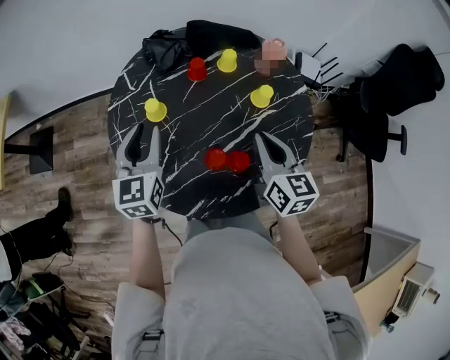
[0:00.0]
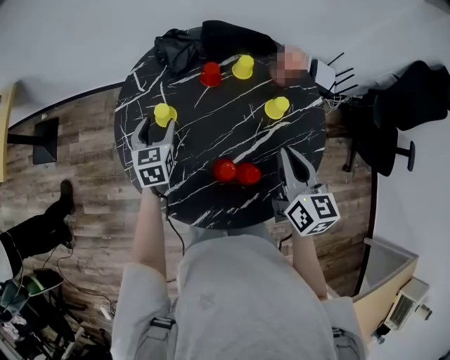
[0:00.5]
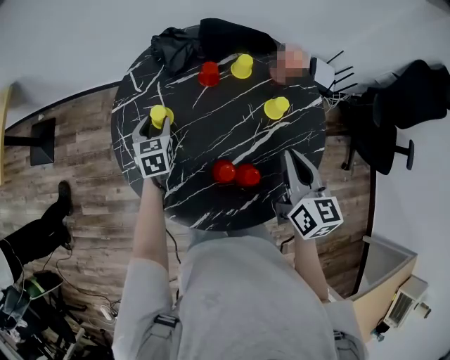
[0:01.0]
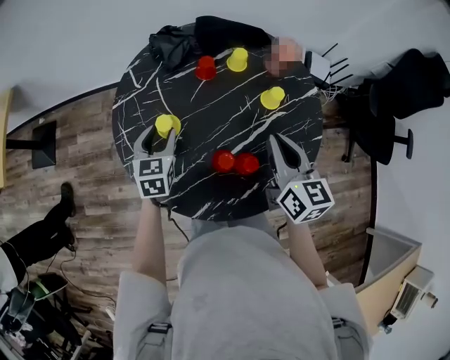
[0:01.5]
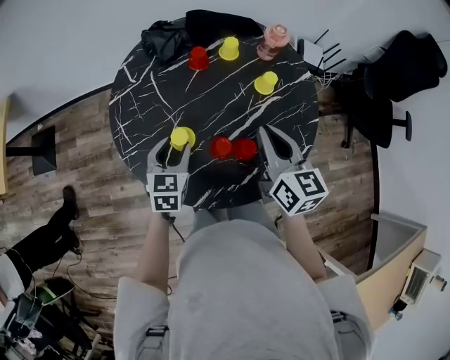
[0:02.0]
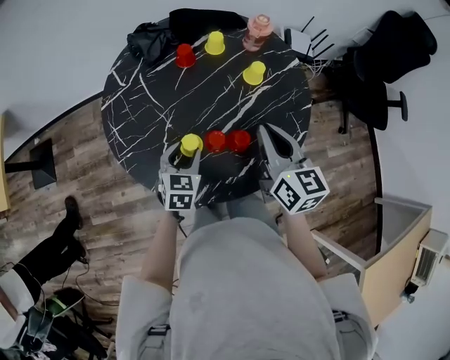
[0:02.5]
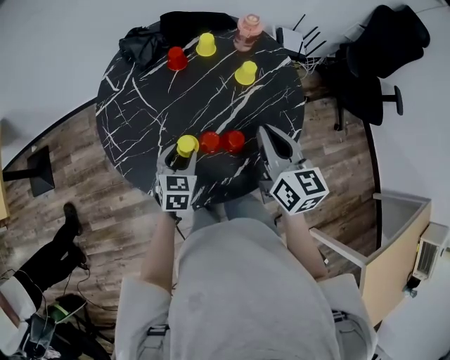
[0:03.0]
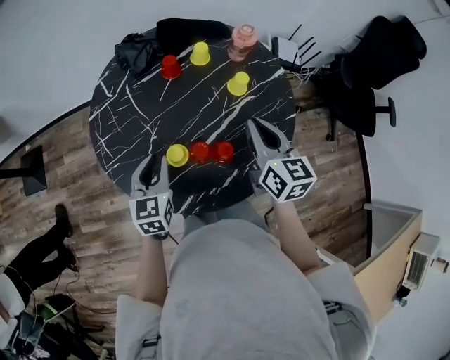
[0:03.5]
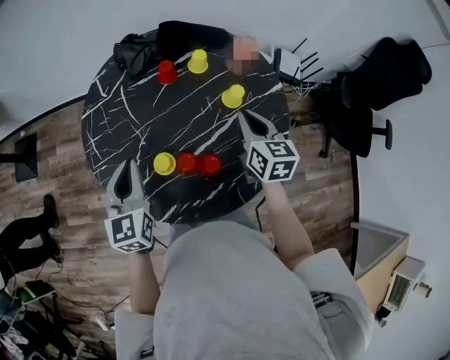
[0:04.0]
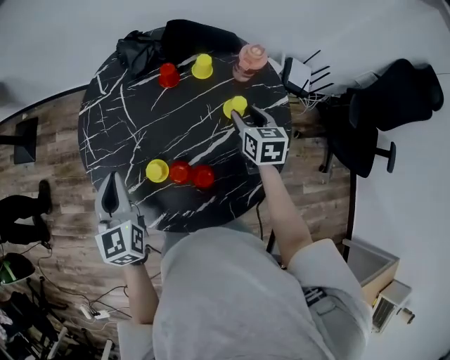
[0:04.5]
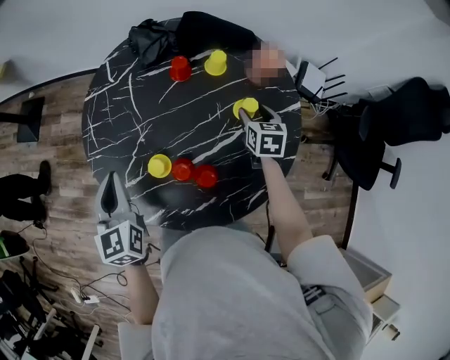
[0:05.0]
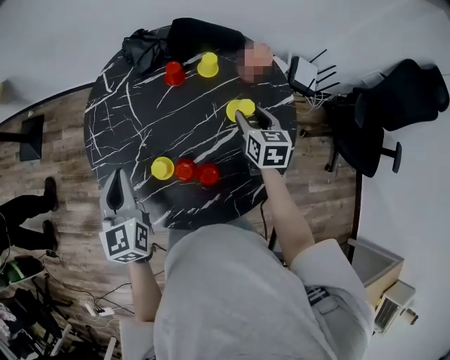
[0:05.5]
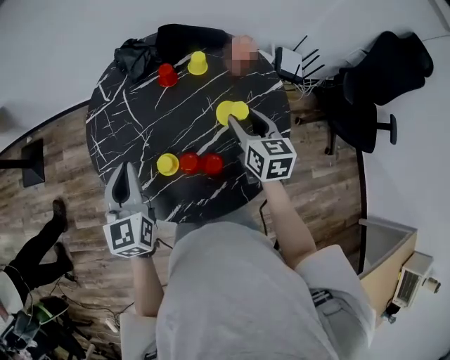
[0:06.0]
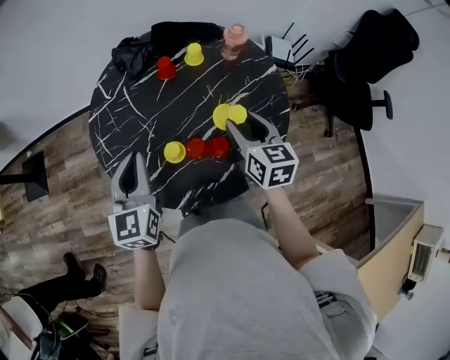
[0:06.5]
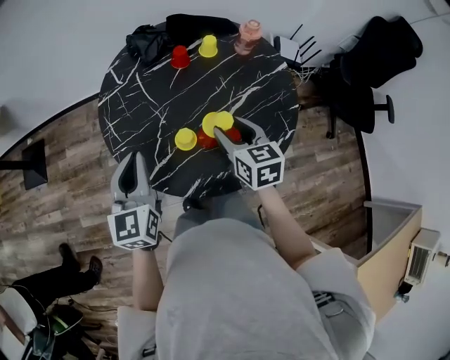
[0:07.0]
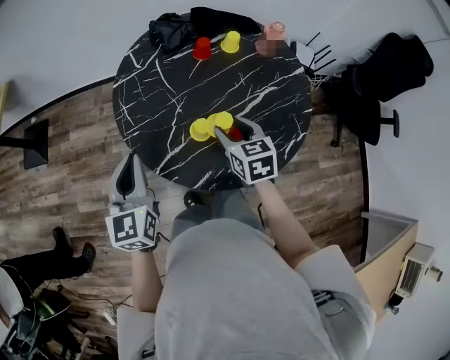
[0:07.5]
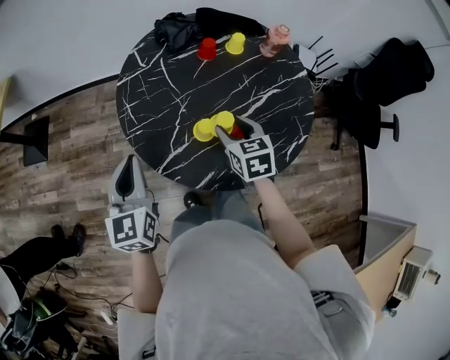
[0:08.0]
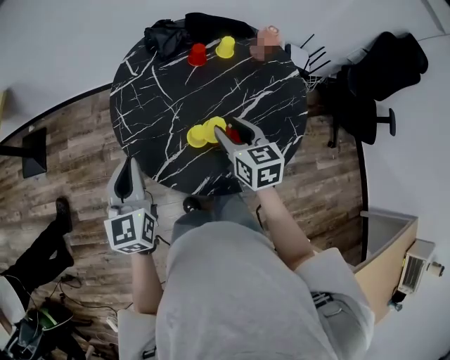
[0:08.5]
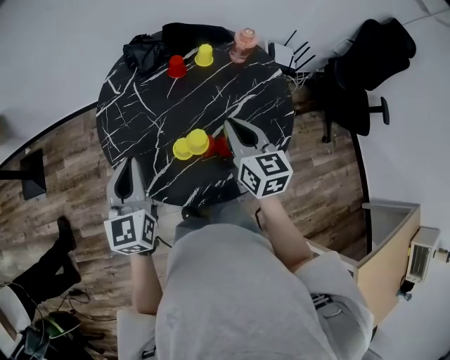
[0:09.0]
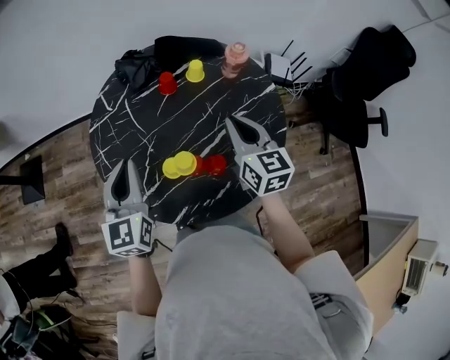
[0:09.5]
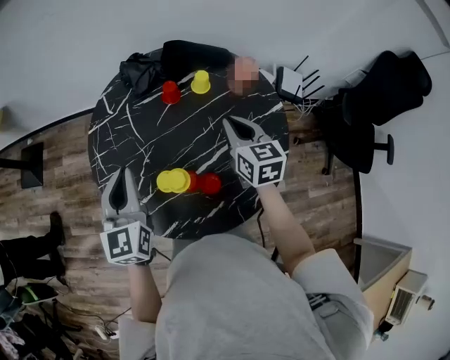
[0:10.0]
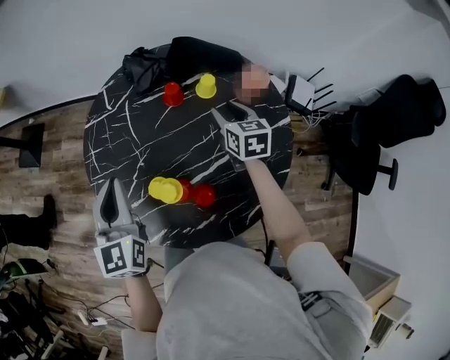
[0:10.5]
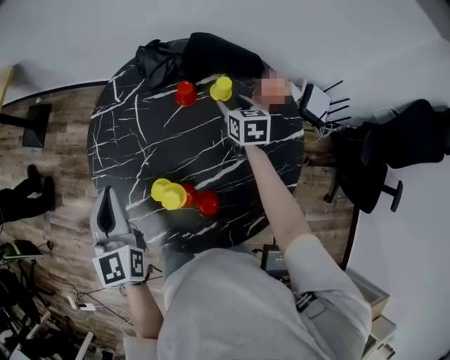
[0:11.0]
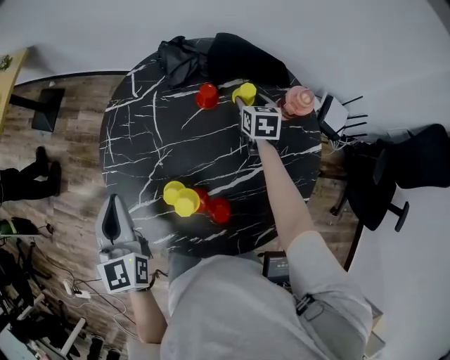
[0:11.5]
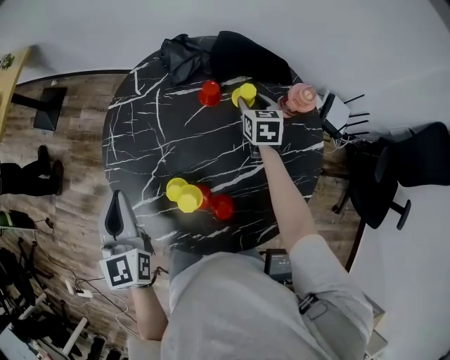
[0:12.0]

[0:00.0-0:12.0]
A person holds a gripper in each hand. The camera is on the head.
0.0 to 2.0 s: The left gripper heads downward and backward, covering some 15 cm, rotates roughly 20 degrees, and opens.
2.0 to 4.0 s: The left gripper travels upward by about 10 cm, rotates about 20 degrees, and closes up, while the right gripper travels forward and to the right by about 10 cm.
4.0 to 6.0 s: The right gripper moves approximately 15 cm downward and comes back, and opens its fingers.
6.0 to 8.0 s: The two grippers go some 20 cm to the left and backward.
8.0 to 10.0 s: The left gripper goes about 15 cm to the right and forward, while the right gripper travels to the right, forward and upward by about 20 cm, and closes up.
10.0 to 12.0 s: The left gripper is displaced to the left by some 5 cm, and turns by roughly 20 degrees. Meanwhile the right gripper is displaced forward and downward by some 25 cm, and opens up.

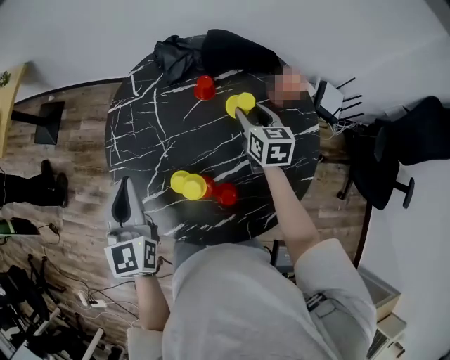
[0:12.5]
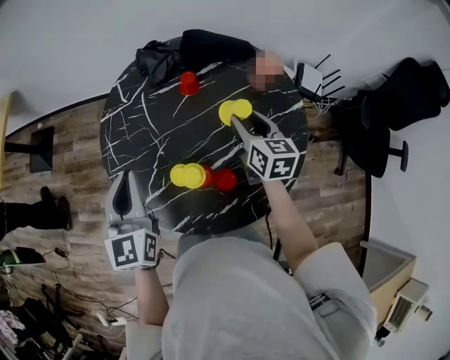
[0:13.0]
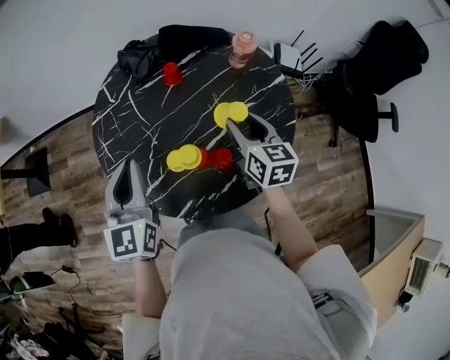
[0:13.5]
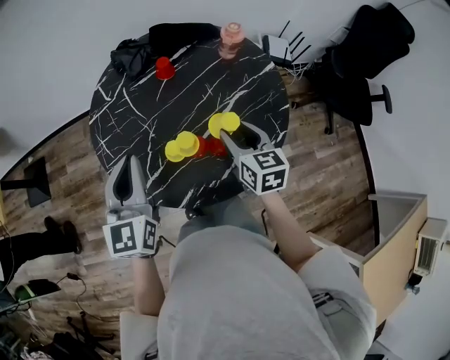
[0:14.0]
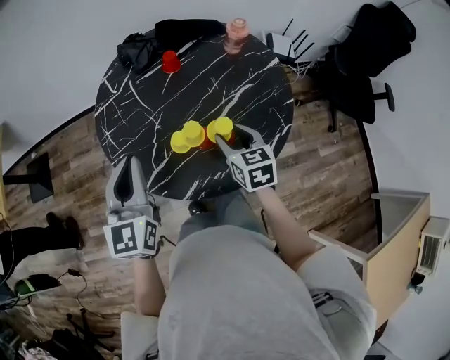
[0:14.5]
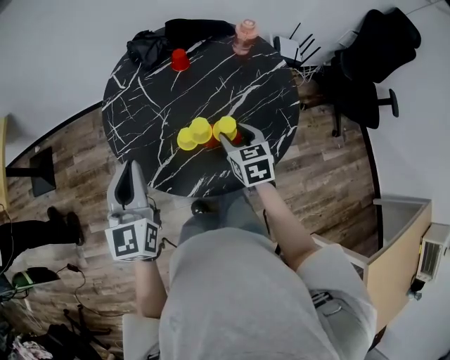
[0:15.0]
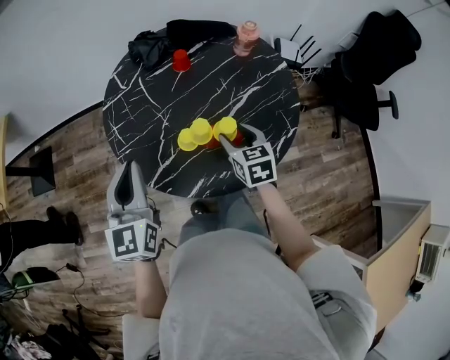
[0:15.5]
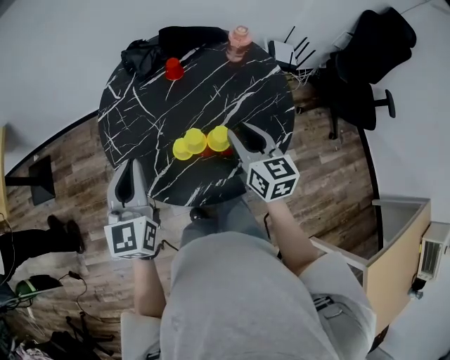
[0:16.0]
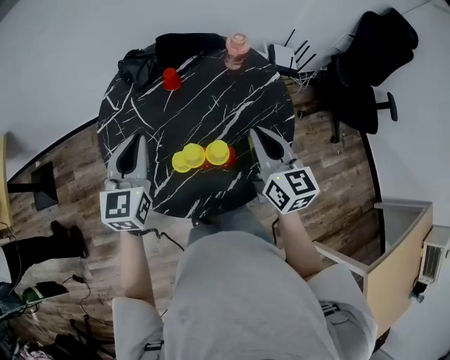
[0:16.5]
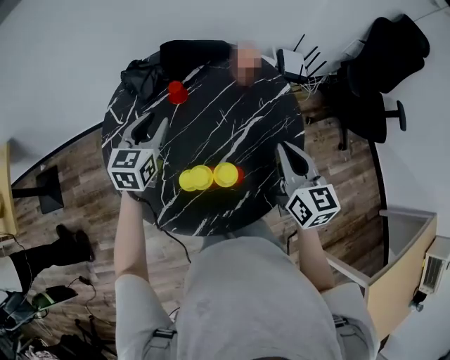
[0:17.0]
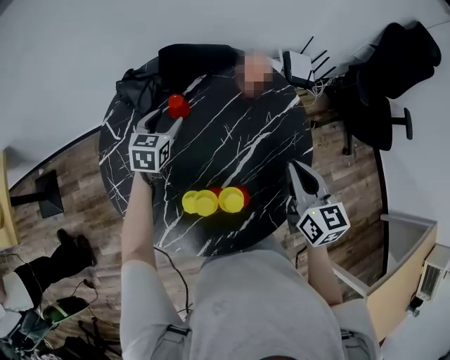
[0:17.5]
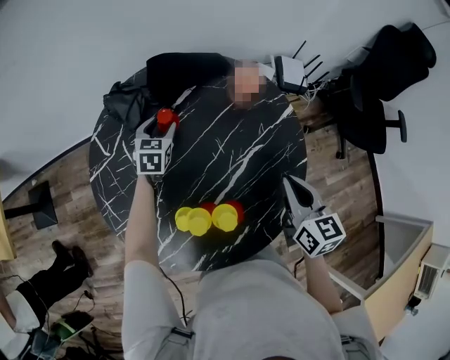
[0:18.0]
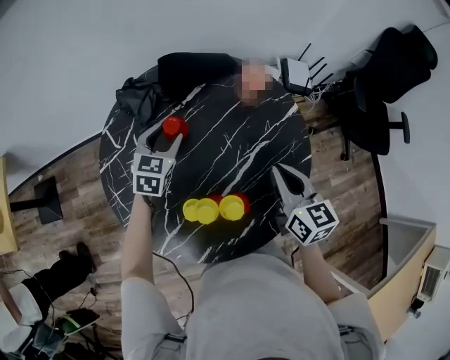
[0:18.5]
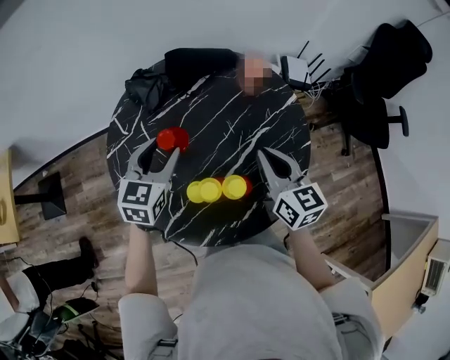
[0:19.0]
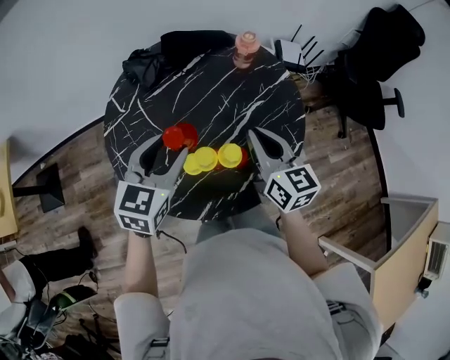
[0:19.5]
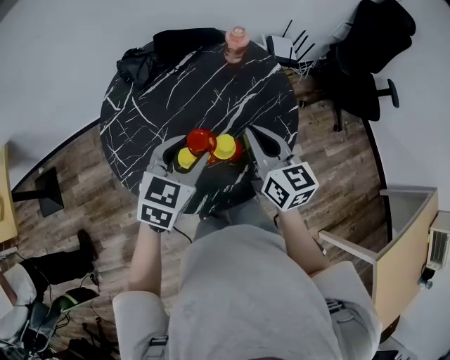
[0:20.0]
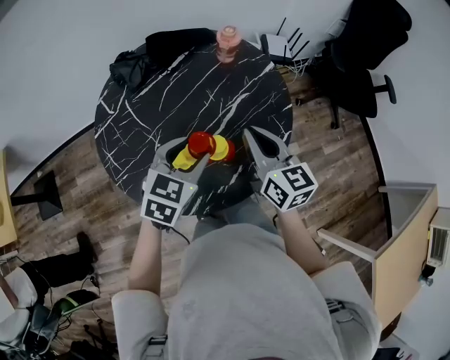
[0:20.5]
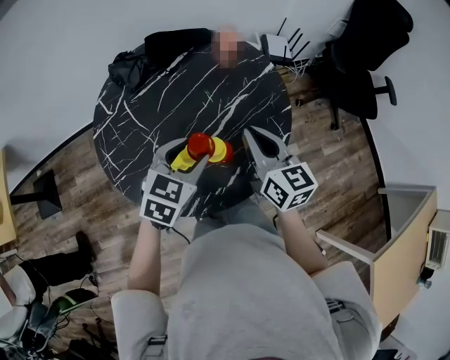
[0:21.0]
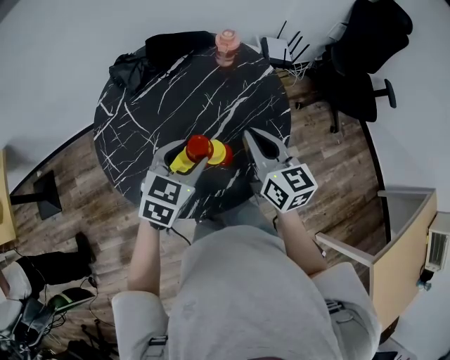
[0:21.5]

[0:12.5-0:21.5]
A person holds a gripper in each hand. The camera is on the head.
12.5 to 14.5 s: The left gripper travels backward by approximately 5 cm, and changes its angle by roughly 30 degrees, while the right gripper heads backward, covering roughly 25 cm.
14.5 to 17.0 s: The left gripper moves forward, some 25 cm, swivels roughly 20 degrees, and opens up, while the right gripper moves to the right and upward, approximately 15 cm, turns by roughly 20 degrees, and closes its fingers.
17.0 to 19.5 s: The right gripper travels to the left by about 10 cm; the left gripper goes about 15 cm backward.
19.5 to 21.5 s: The left gripper goes roughly 10 cm to the right.

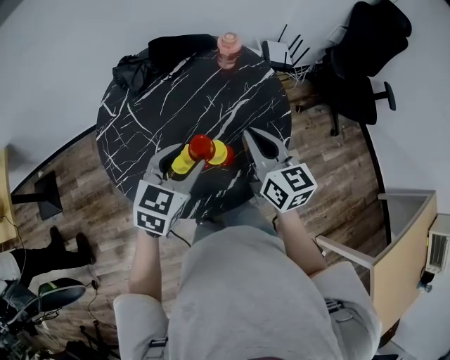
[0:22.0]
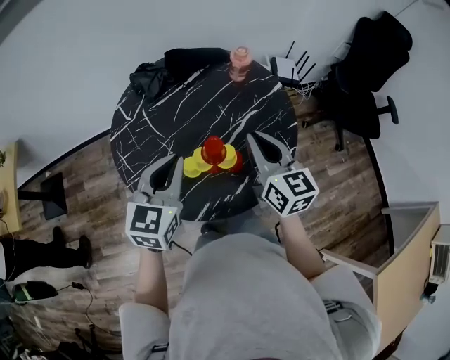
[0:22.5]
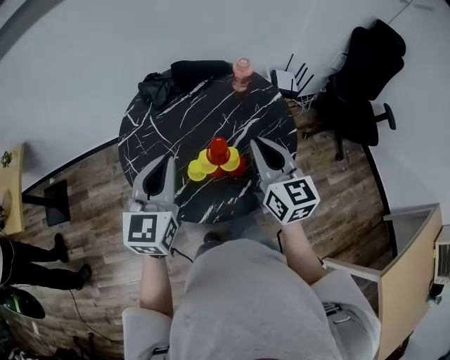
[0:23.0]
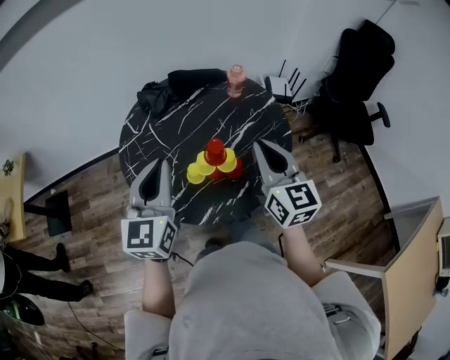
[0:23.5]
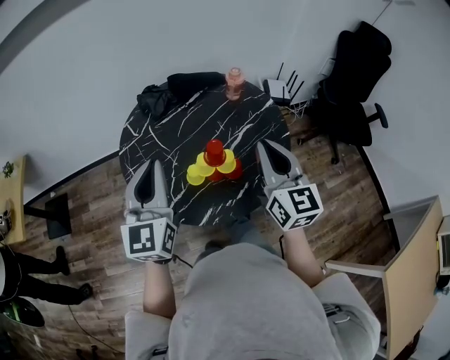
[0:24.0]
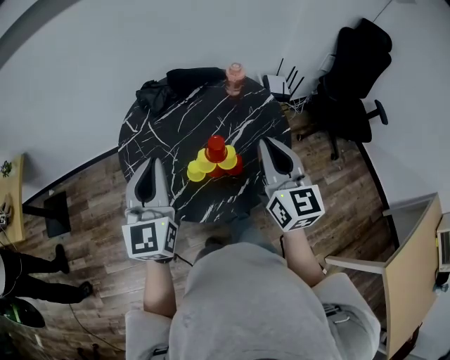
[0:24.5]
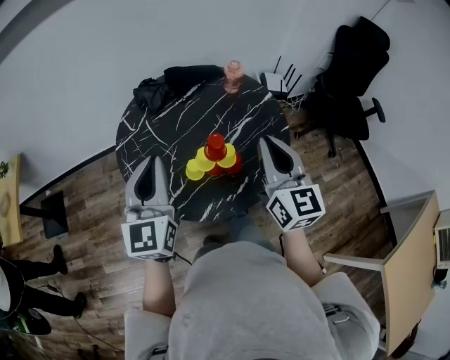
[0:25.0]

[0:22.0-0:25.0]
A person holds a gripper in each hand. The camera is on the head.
22.0 to 23.5 s: The right gripper travels upward and backward by approximately 10 cm, while the left gripper is displaced upward, to the left and backward by about 20 cm, turns by approximately 40 degrees, and closes its fingers.
23.5 to 25.0 s: The grippers make only small movements.

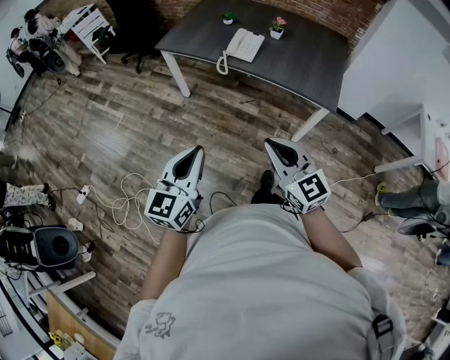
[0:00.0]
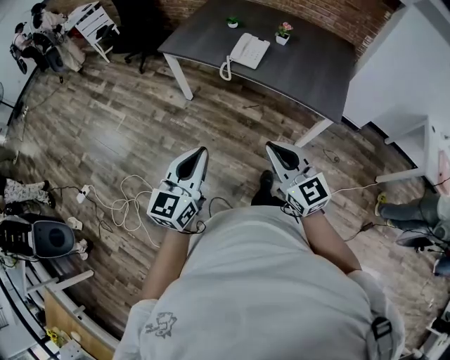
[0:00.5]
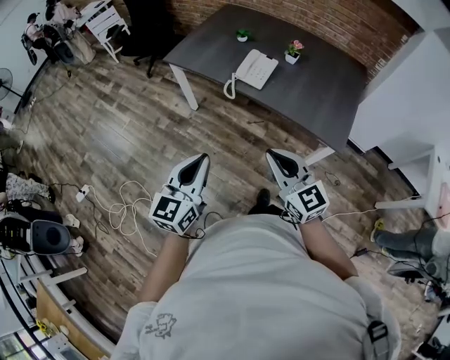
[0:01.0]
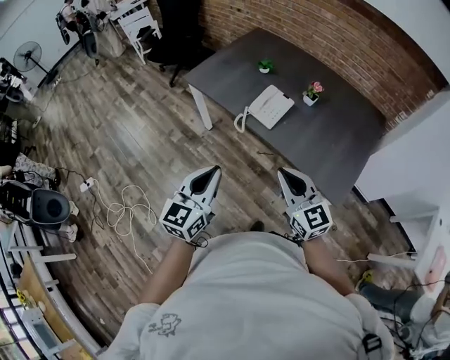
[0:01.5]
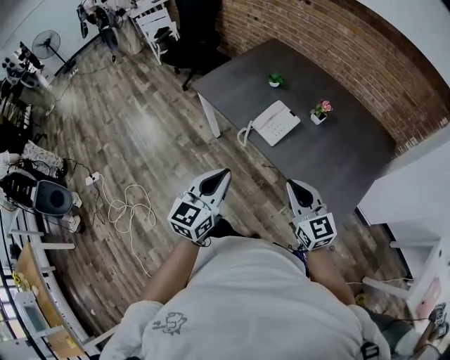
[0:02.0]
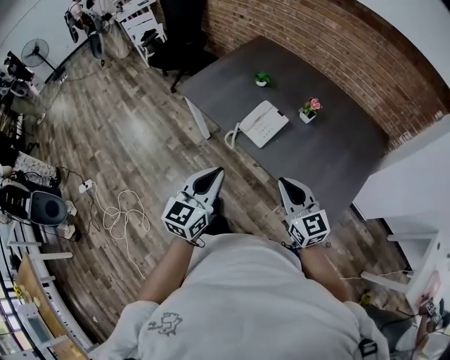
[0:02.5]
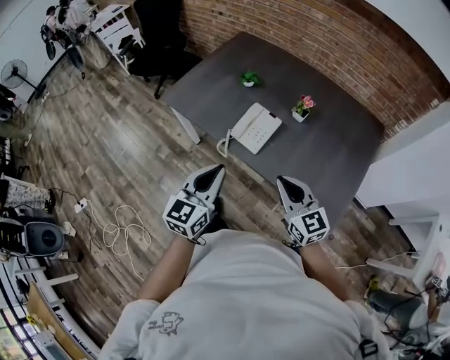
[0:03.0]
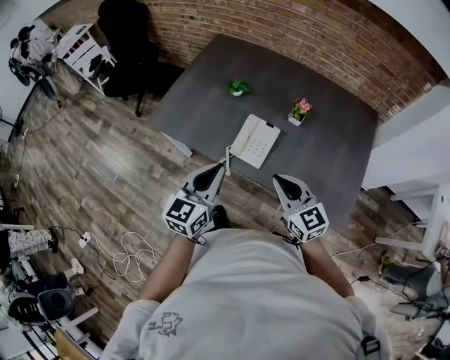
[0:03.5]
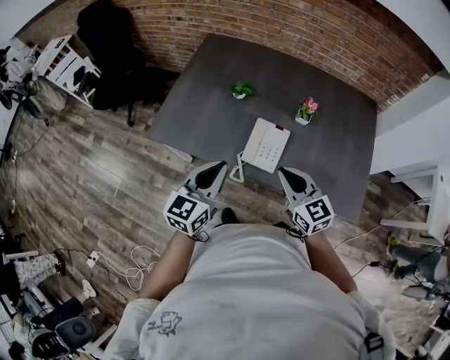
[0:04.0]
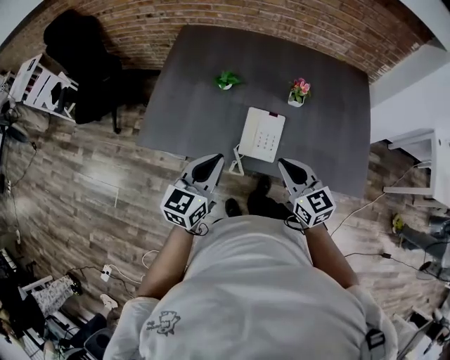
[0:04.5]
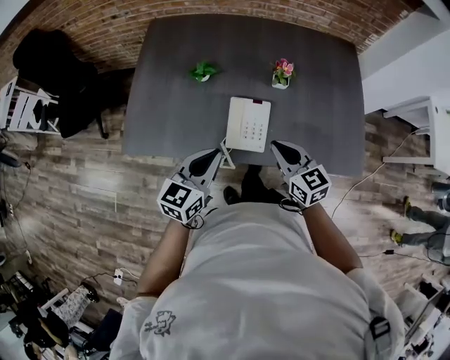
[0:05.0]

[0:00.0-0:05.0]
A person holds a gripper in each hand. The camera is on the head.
0.0 to 2.5 s: Both grippers travel together forward and to the right, approximately 40 cm.
2.5 to 5.0 s: The left gripper shifts by roughly 35 cm, and changes its angle by about 40 degrees, while the right gripper ends up about 25 cm from where it was, and changes its angle by some 40 degrees.
